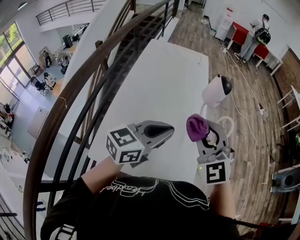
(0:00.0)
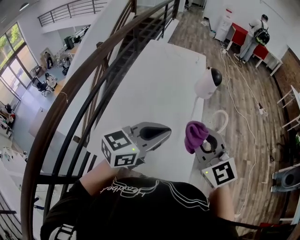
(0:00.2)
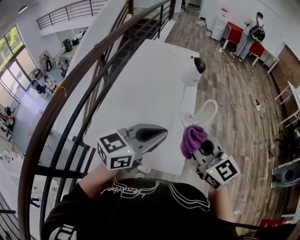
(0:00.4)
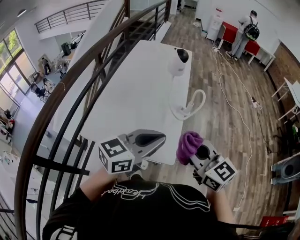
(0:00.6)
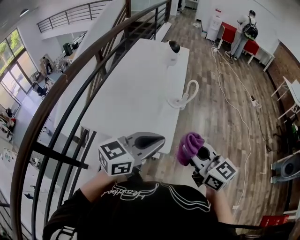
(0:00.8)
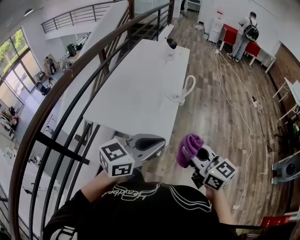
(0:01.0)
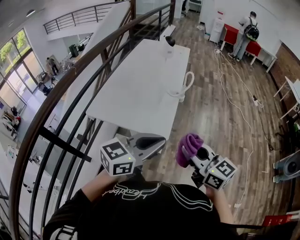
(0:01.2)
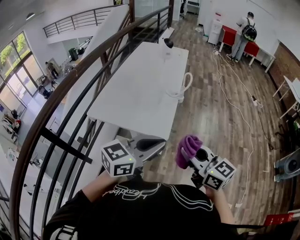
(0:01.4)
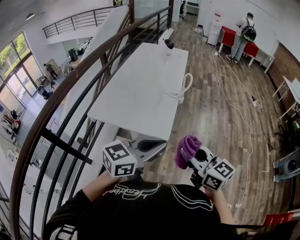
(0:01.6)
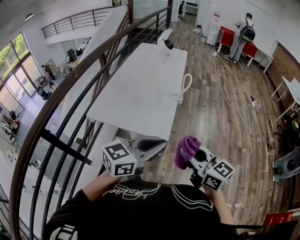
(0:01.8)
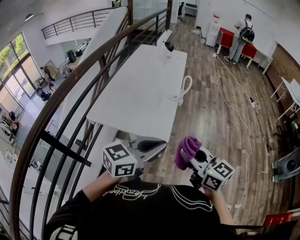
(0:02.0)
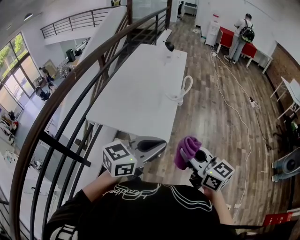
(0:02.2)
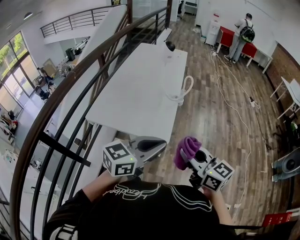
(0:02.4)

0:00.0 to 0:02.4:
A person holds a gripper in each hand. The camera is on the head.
0:00.0 to 0:01.2: The pair of grippers is taken backward and to the right, some 40 cm. The right gripper rolls clockwise, seen from behind, by about 60 degrees.
0:01.2 to 0:02.4: There are only small adjustments of the grippers.

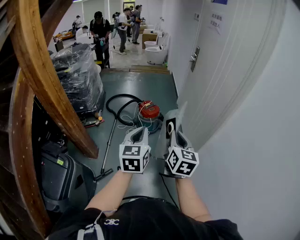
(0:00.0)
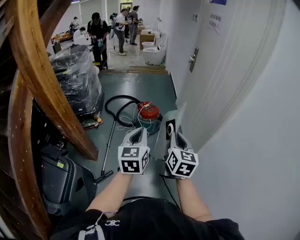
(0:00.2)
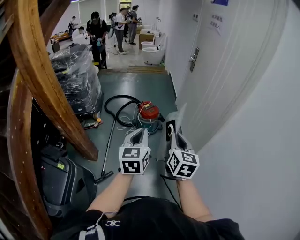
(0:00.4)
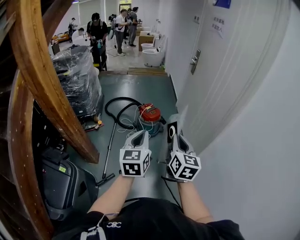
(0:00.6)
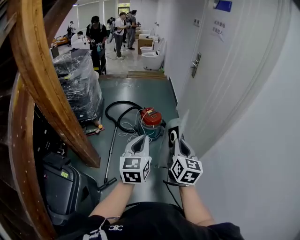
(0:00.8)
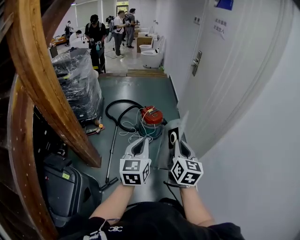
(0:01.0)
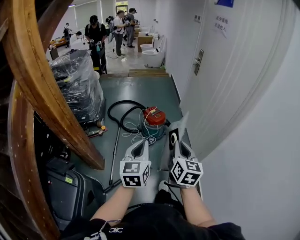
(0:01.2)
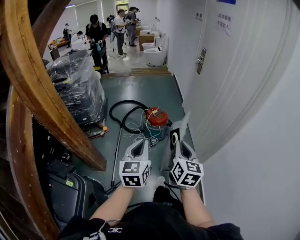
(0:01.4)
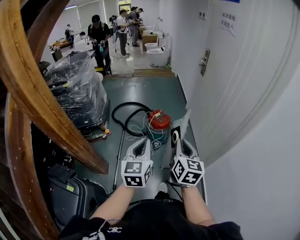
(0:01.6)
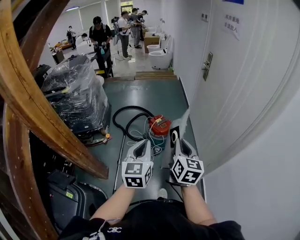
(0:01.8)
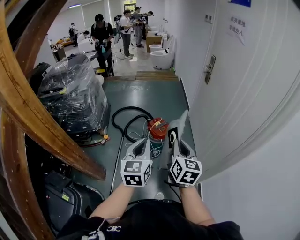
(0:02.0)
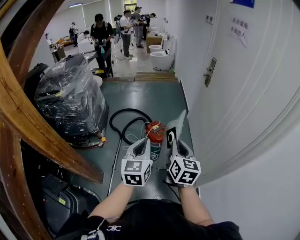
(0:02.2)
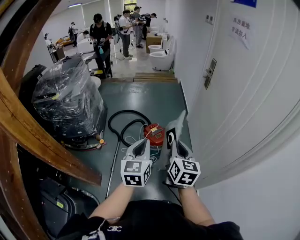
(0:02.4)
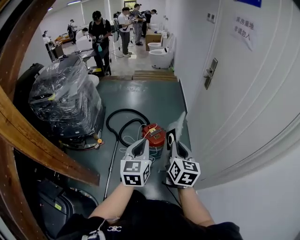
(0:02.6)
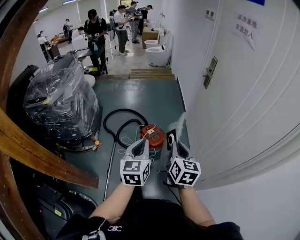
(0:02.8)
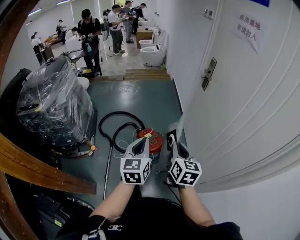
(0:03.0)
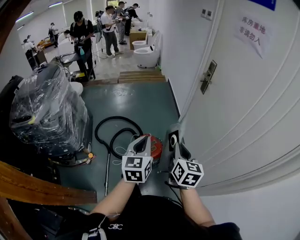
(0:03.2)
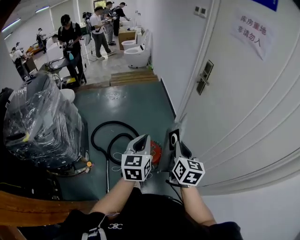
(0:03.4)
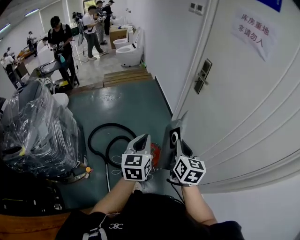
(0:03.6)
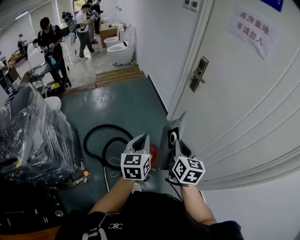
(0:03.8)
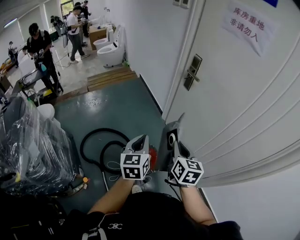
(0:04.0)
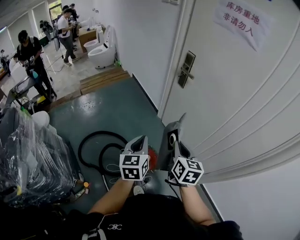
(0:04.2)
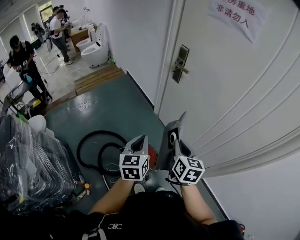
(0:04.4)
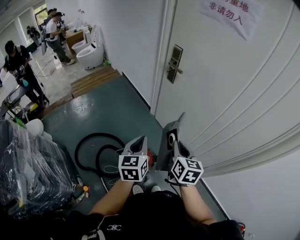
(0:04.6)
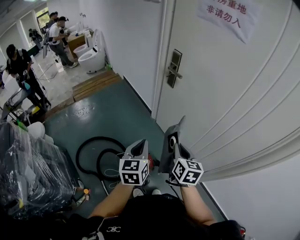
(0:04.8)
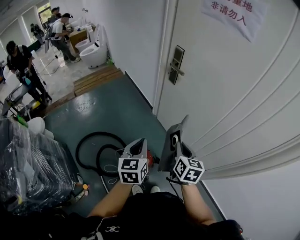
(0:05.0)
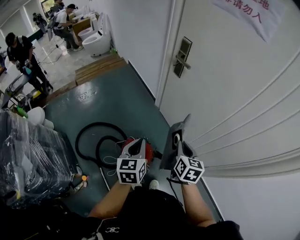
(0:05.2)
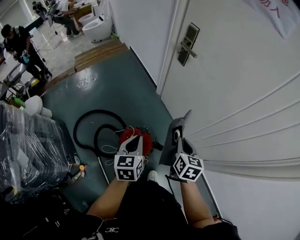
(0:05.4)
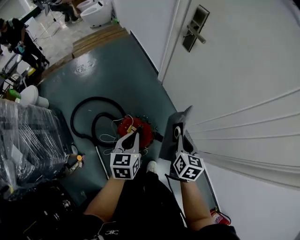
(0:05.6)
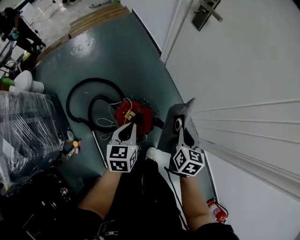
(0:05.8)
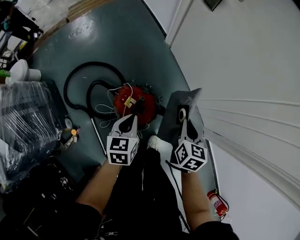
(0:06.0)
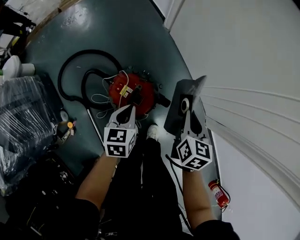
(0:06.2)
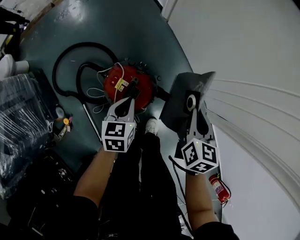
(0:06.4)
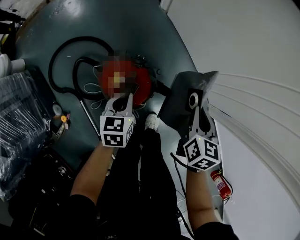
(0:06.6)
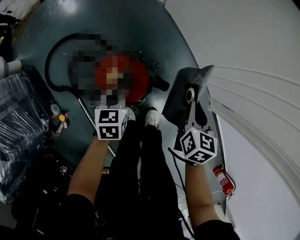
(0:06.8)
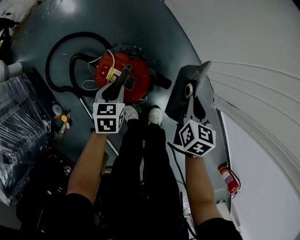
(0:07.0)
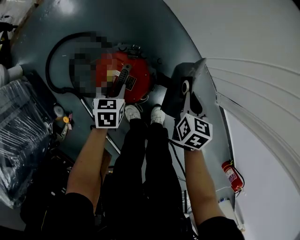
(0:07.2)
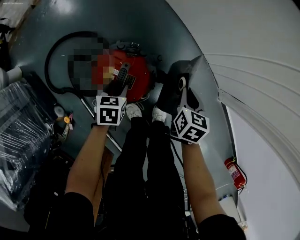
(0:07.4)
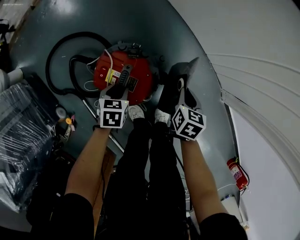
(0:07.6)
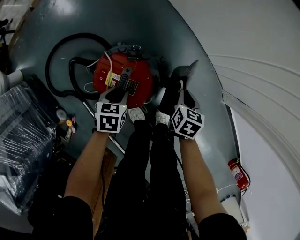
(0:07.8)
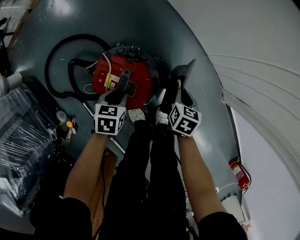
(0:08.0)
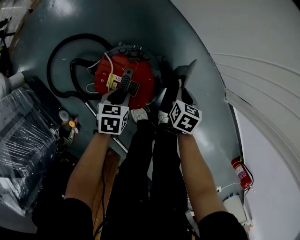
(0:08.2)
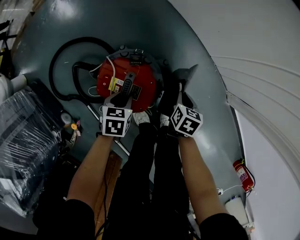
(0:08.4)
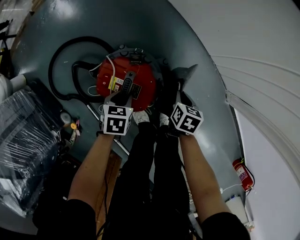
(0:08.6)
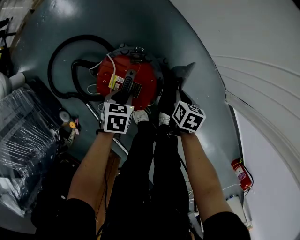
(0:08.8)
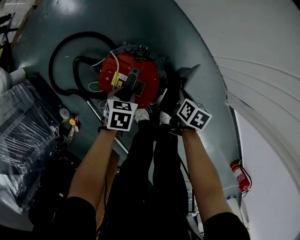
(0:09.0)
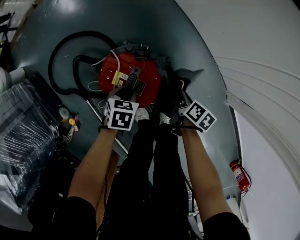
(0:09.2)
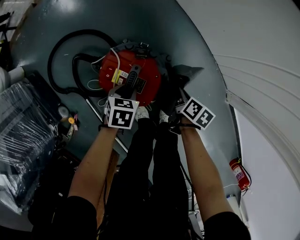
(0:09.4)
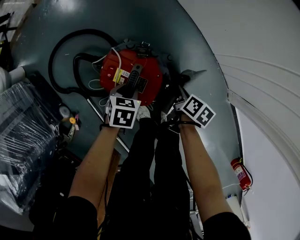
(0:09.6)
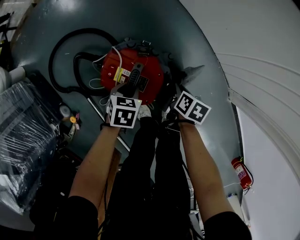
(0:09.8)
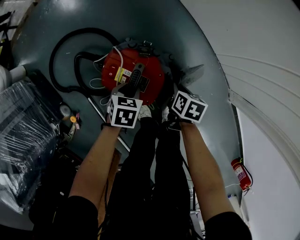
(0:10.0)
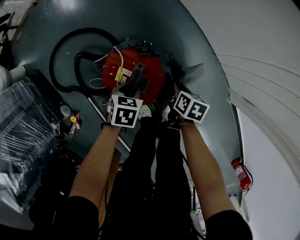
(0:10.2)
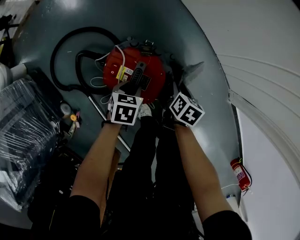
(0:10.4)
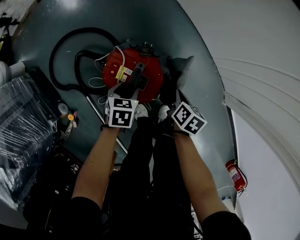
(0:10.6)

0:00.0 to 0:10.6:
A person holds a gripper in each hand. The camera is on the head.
0:00.0 to 0:01.6: Both grippers move forward and to the left, about 15 cm.
0:01.6 to 0:03.0: Both grippers move forward, roughly 30 cm.
0:03.0 to 0:04.6: The right gripper moves about 20 cm, and changes its angle by some 30 degrees; the left gripper moves roughly 25 cm, and changes its angle by approximately 30 degrees.
0:04.6 to 0:06.0: Both grippers travel together downward, roughly 30 cm. The left gripper swivels roughly 20 degrees.
0:06.0 to 0:07.6: The grippers both shift downward by some 30 cm. The left gripper rotates about 30 degrees, and opens up.
0:07.6 to 0:09.0: The right gripper travels downward by roughly 5 cm, and rotates roughly 20 degrees.
0:09.0 to 0:10.6: The right gripper opens, then closes once more. Meanwhile the left gripper opens its fingers.

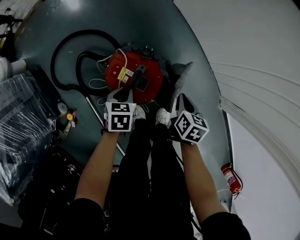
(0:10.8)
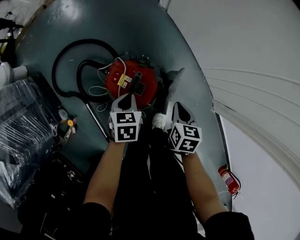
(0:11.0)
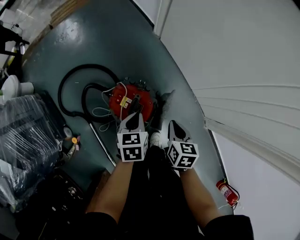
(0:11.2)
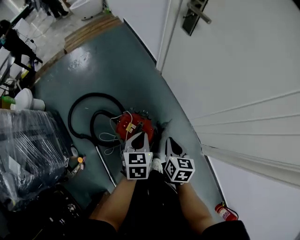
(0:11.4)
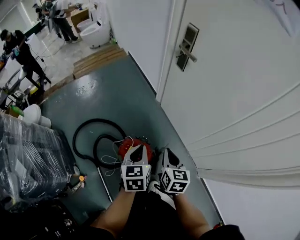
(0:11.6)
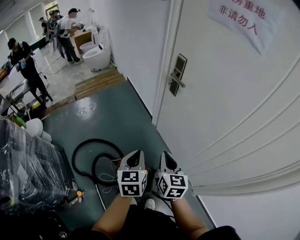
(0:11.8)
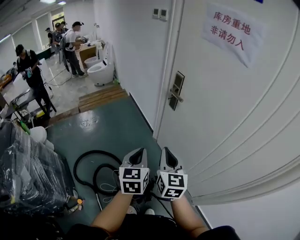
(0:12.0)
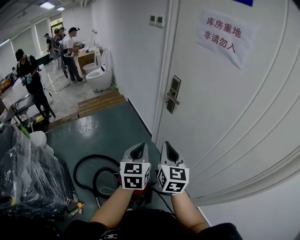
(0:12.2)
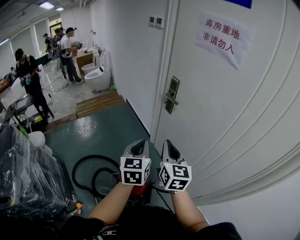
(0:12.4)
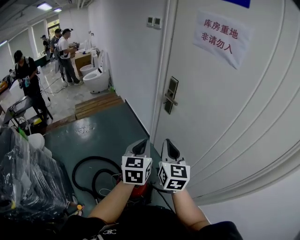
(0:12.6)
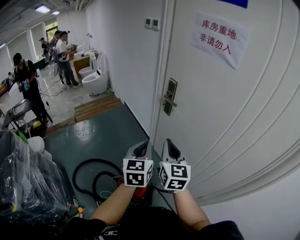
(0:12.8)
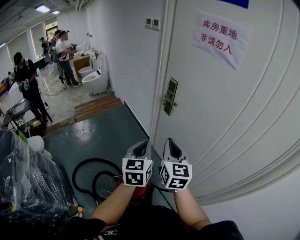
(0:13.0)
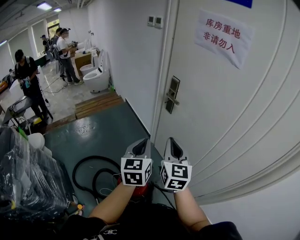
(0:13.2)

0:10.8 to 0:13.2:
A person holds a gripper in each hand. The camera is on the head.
0:10.8 to 0:12.0: Both grippers move upward, about 60 cm. The left gripper tilts its fingers some 50 degrees upward, while the right gripper points its fingers roughly 50 degrees further upward.
0:12.0 to 0:13.2: Both grippers travel together upward, about 5 cm.

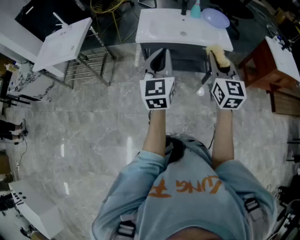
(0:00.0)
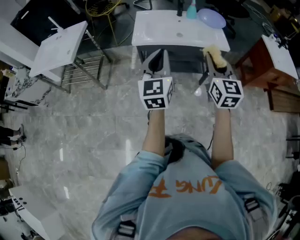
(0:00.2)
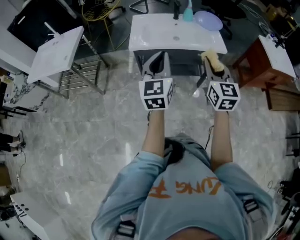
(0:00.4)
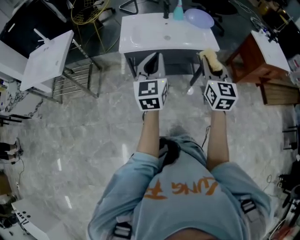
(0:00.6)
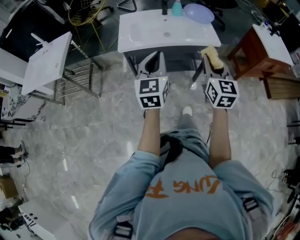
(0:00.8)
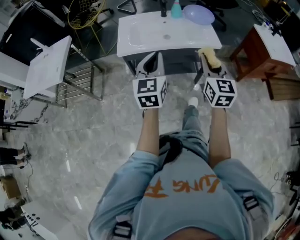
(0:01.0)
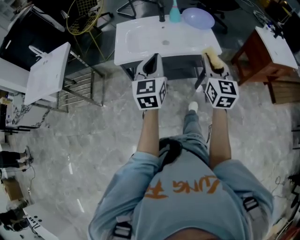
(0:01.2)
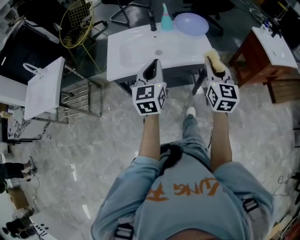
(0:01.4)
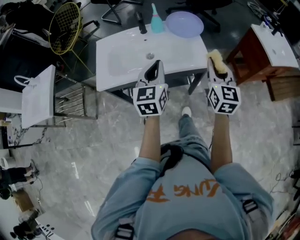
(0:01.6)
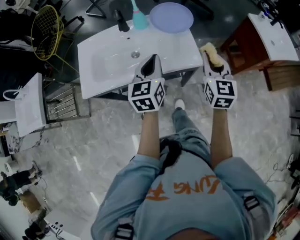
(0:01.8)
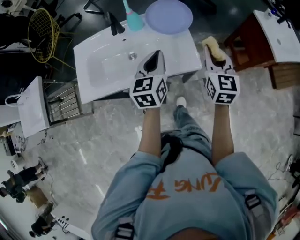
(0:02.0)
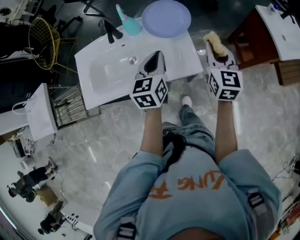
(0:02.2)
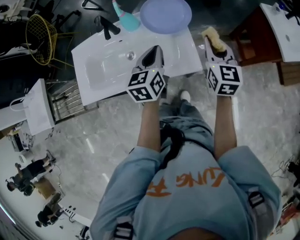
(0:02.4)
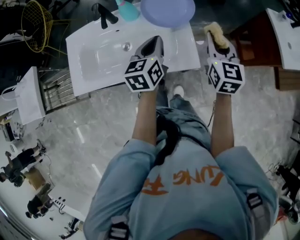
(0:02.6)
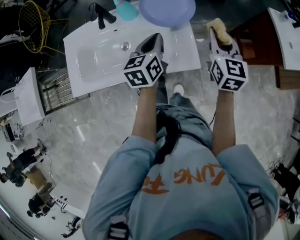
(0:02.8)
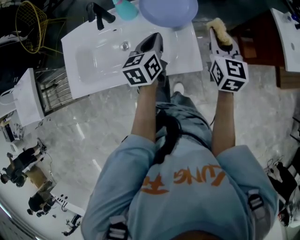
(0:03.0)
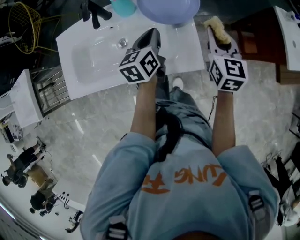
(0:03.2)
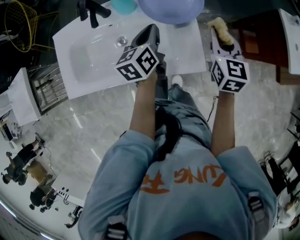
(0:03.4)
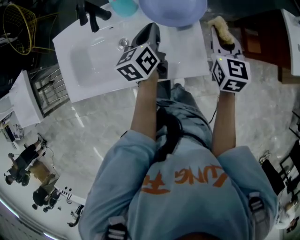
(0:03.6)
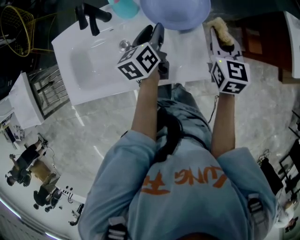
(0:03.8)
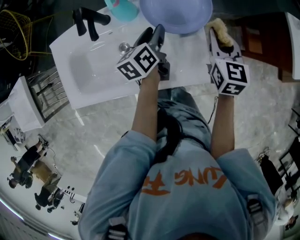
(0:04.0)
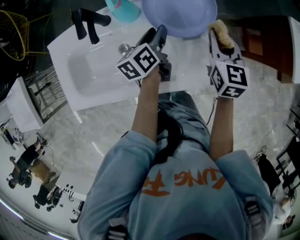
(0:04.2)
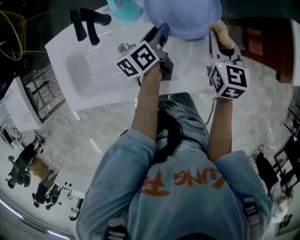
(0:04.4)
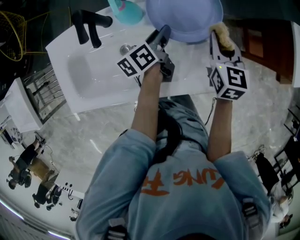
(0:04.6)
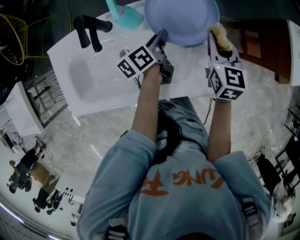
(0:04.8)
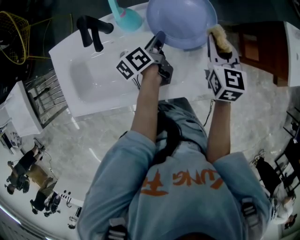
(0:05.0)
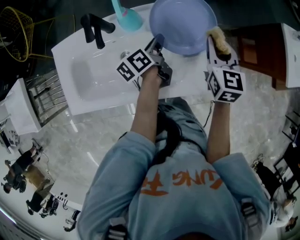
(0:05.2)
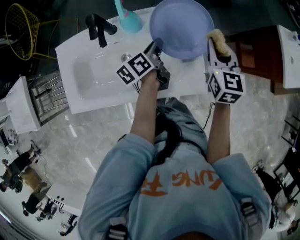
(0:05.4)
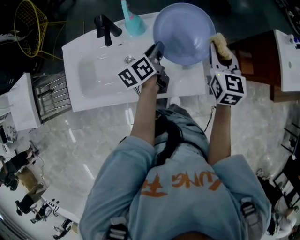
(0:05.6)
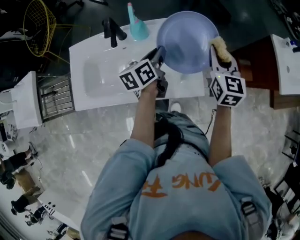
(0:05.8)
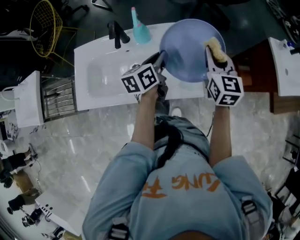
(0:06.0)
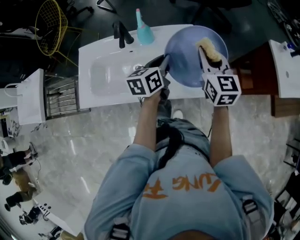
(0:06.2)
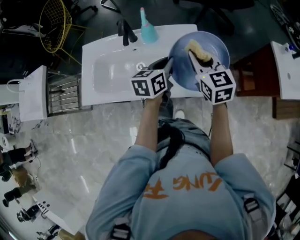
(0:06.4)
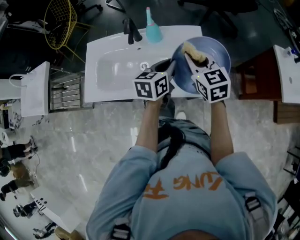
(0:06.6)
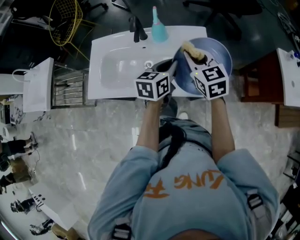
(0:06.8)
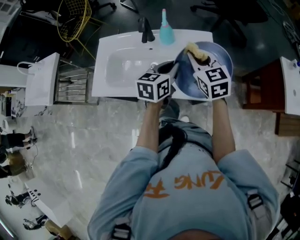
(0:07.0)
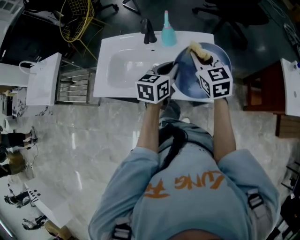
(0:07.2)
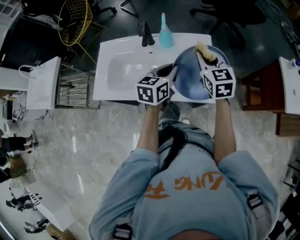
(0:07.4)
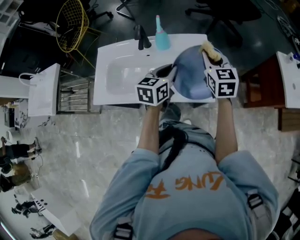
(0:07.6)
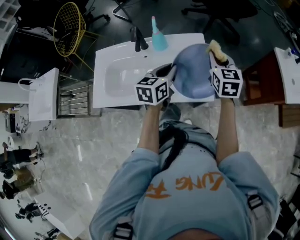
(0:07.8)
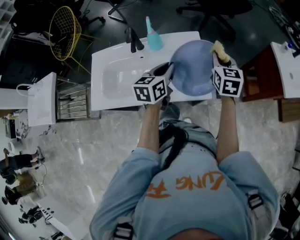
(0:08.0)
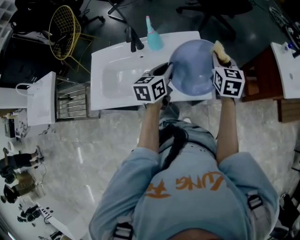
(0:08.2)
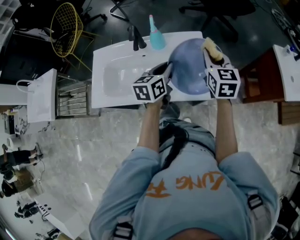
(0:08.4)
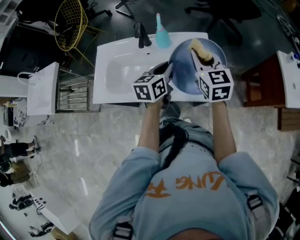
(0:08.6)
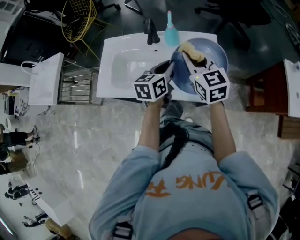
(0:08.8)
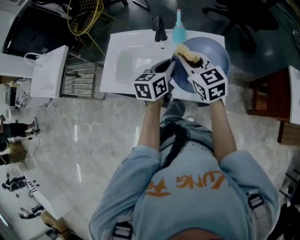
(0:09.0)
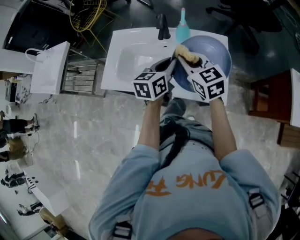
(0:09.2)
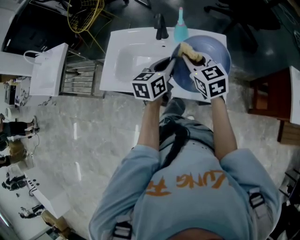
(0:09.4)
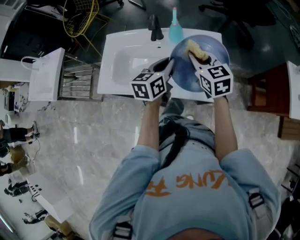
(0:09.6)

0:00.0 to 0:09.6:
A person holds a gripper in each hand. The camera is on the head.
0:00.0 to 0:01.6: The grippers both shift forward and to the right by about 35 cm.
0:01.6 to 0:03.2: Both grippers travel together forward and downward, some 30 cm. The left gripper turns by about 30 degrees.
0:03.2 to 0:04.8: The left gripper is displaced downward and forward by about 10 cm, changes its angle by roughly 30 degrees, and opens, while the right gripper goes approximately 5 cm forward.
0:04.8 to 0:06.4: The right gripper heads upward, backward and to the left, covering about 15 cm, and turns by about 30 degrees, while the left gripper heads upward and backward, covering approximately 20 cm, and changes its angle by approximately 40 degrees.
0:06.4 to 0:08.0: The right gripper shifts some 10 cm to the right, and rotates some 20 degrees.
0:08.0 to 0:09.6: The right gripper moves approximately 20 cm, and rotates roughly 30 degrees; the left gripper shifts by about 10 cm.
